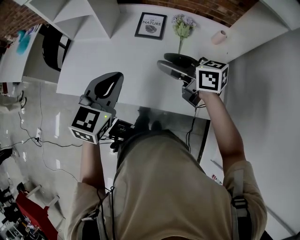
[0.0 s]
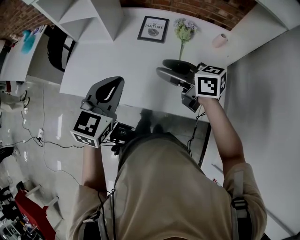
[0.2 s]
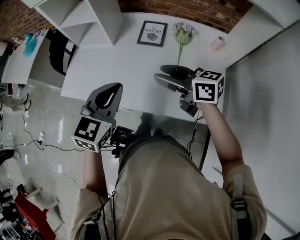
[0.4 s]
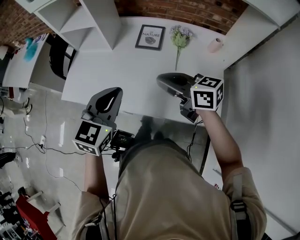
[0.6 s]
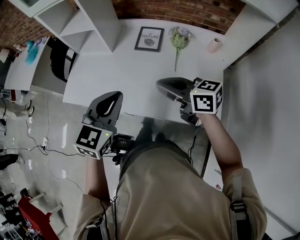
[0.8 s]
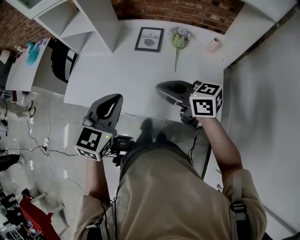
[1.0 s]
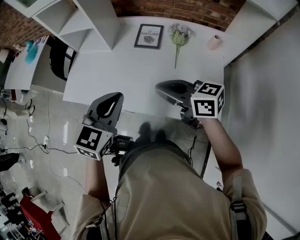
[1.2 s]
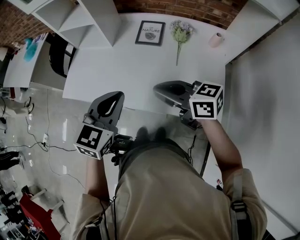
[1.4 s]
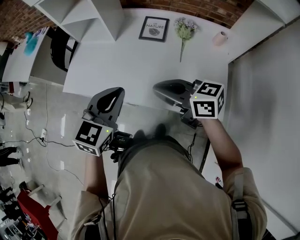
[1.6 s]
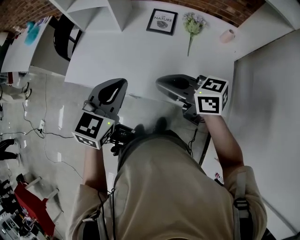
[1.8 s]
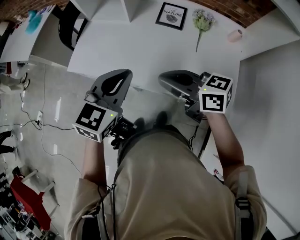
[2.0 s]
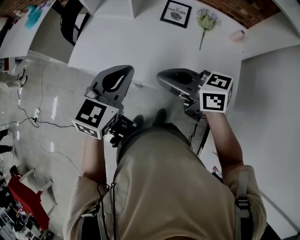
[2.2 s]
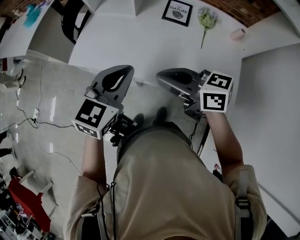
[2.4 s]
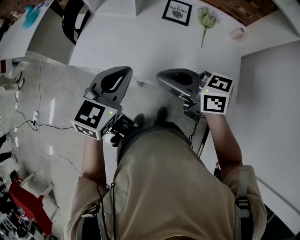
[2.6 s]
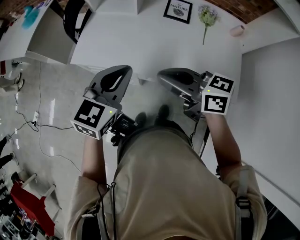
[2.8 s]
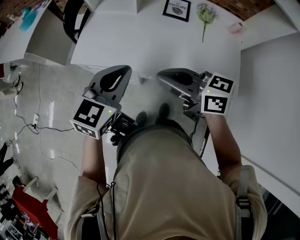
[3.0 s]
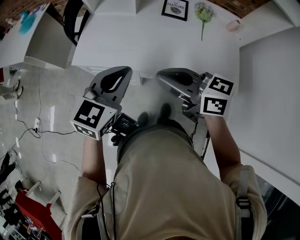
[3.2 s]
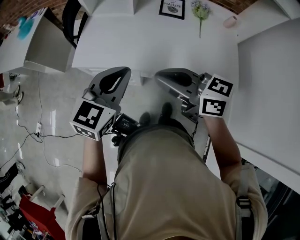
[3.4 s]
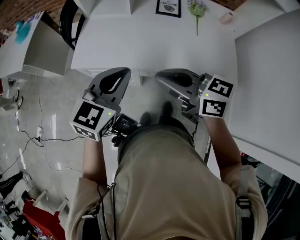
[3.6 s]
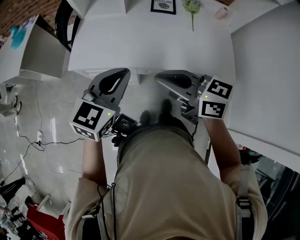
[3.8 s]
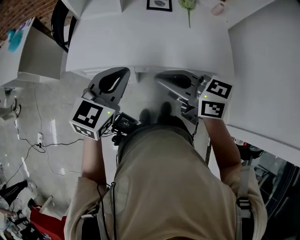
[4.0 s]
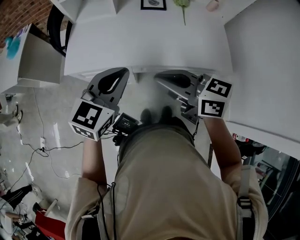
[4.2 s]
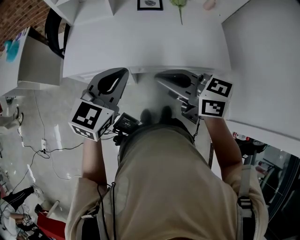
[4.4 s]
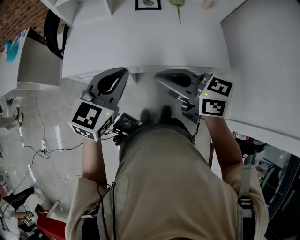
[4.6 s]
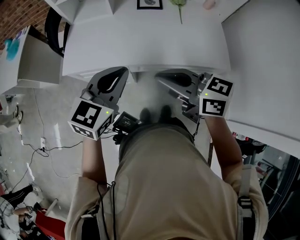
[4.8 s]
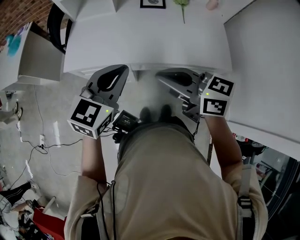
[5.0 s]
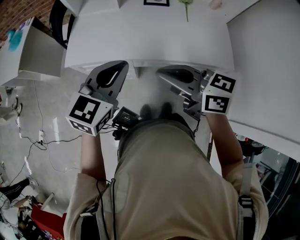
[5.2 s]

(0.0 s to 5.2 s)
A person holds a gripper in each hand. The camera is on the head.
0.0 s - 1.8 s: The left gripper ends up roughly 5 cm from where it was. The right gripper moves backward and to the left, roughly 15 cm, and closes.
1.8 s - 3.4 s: Both grippers travel together to the left, about 15 cm.
3.4 s - 5.2 s: The right gripper ends up approximately 5 cm from where it was.

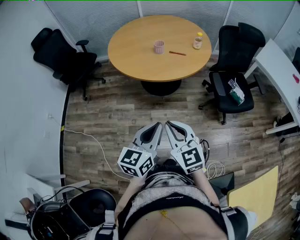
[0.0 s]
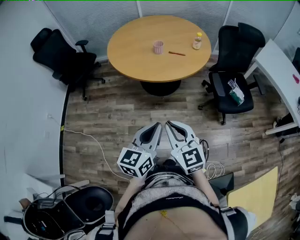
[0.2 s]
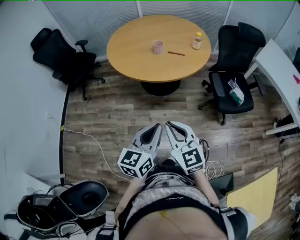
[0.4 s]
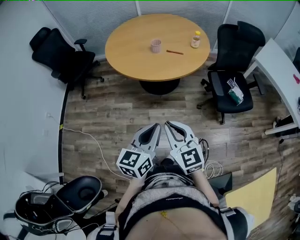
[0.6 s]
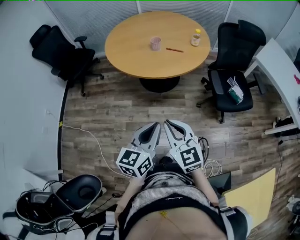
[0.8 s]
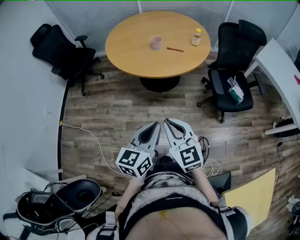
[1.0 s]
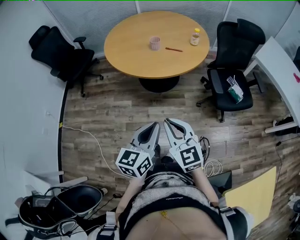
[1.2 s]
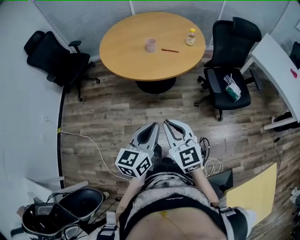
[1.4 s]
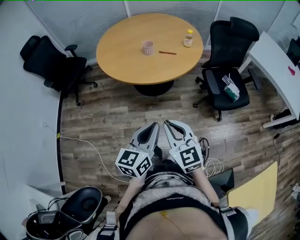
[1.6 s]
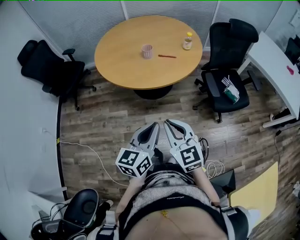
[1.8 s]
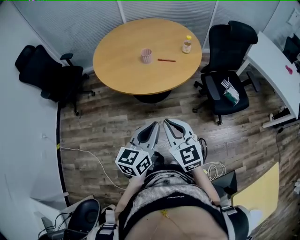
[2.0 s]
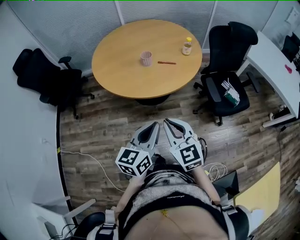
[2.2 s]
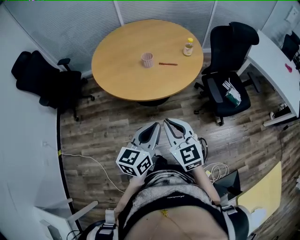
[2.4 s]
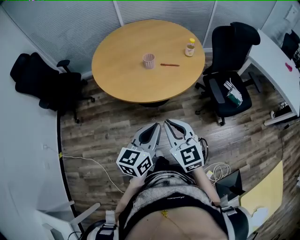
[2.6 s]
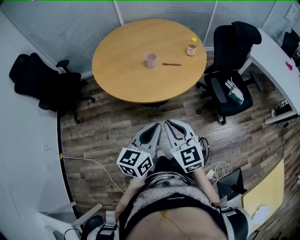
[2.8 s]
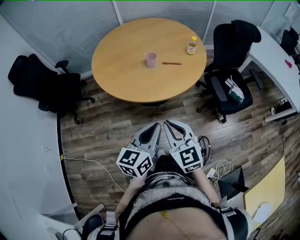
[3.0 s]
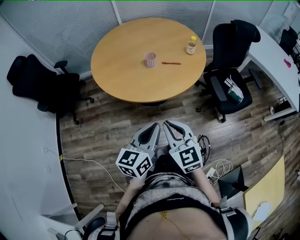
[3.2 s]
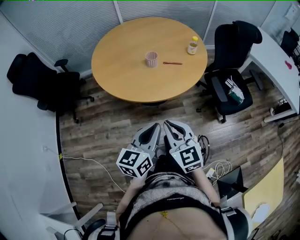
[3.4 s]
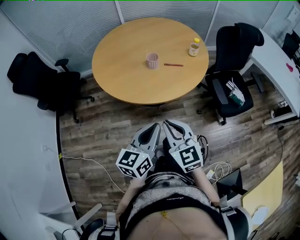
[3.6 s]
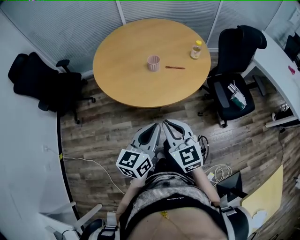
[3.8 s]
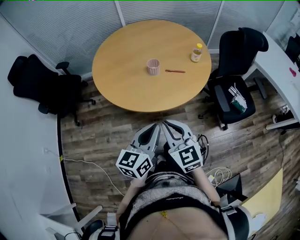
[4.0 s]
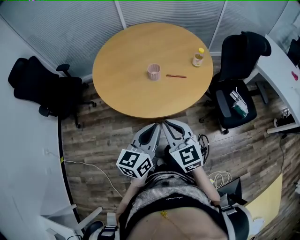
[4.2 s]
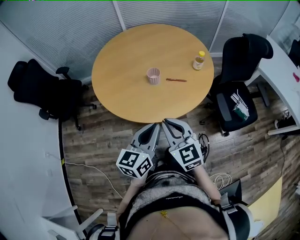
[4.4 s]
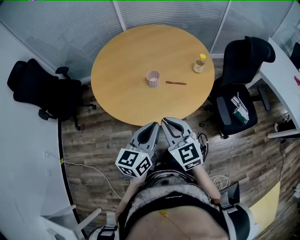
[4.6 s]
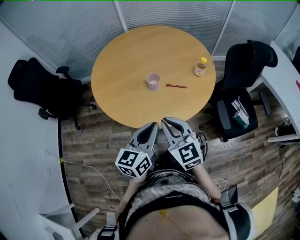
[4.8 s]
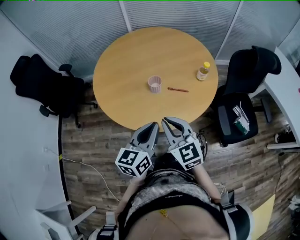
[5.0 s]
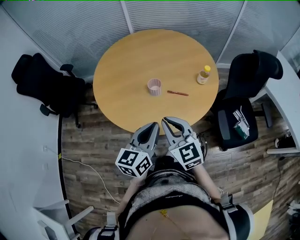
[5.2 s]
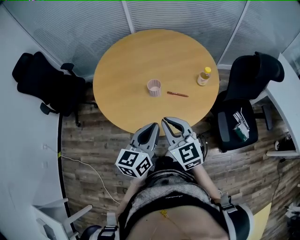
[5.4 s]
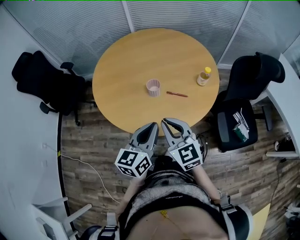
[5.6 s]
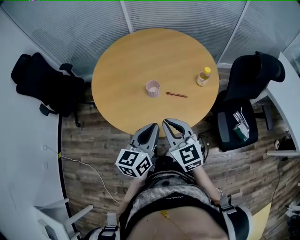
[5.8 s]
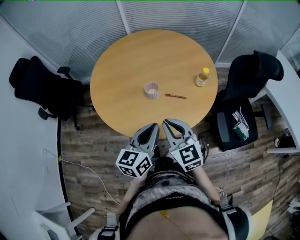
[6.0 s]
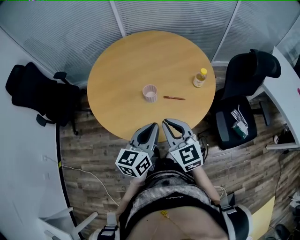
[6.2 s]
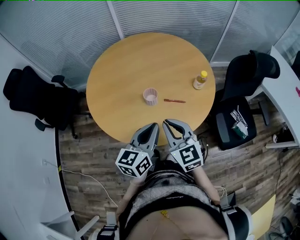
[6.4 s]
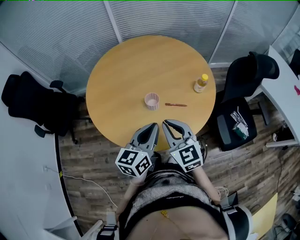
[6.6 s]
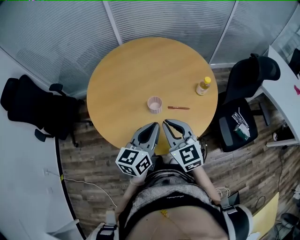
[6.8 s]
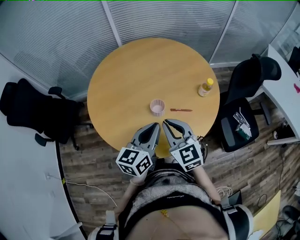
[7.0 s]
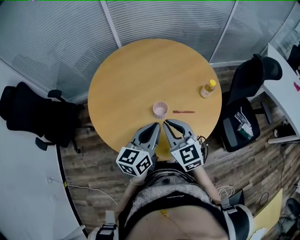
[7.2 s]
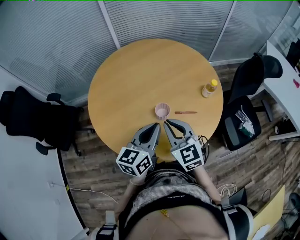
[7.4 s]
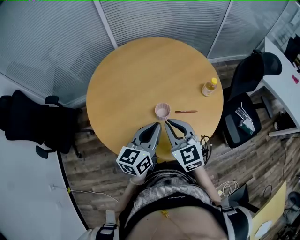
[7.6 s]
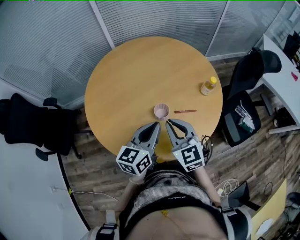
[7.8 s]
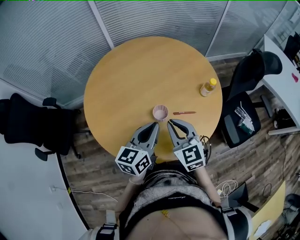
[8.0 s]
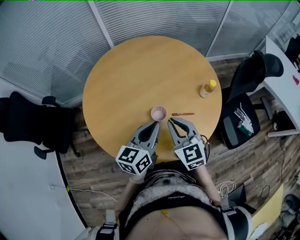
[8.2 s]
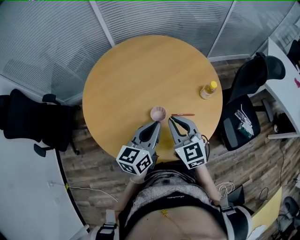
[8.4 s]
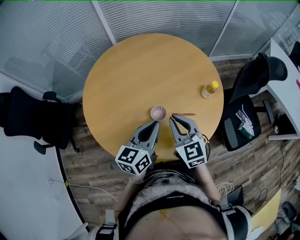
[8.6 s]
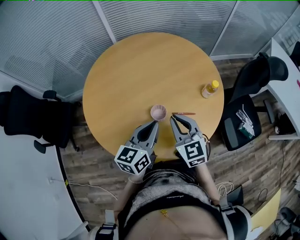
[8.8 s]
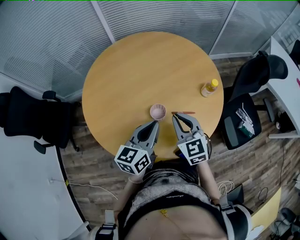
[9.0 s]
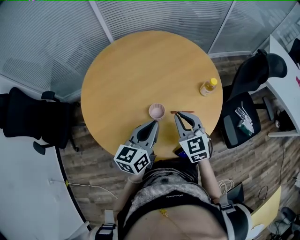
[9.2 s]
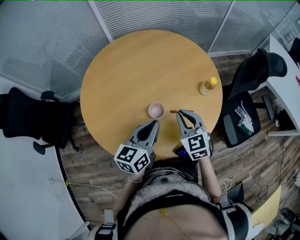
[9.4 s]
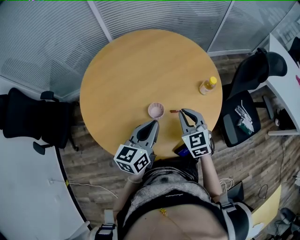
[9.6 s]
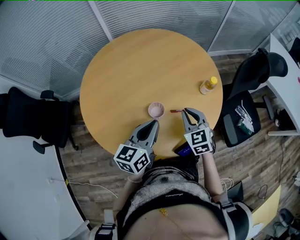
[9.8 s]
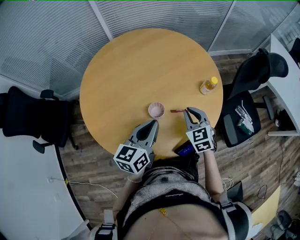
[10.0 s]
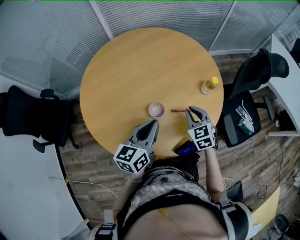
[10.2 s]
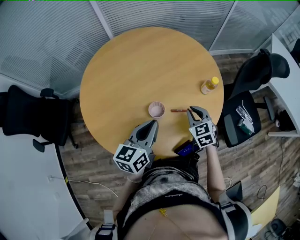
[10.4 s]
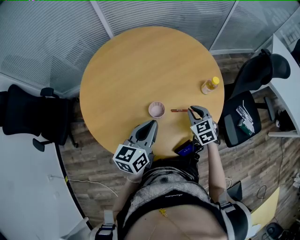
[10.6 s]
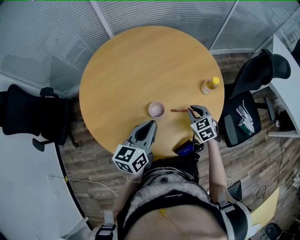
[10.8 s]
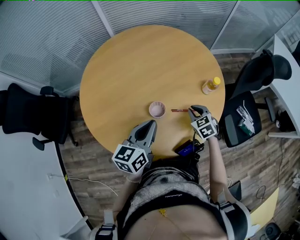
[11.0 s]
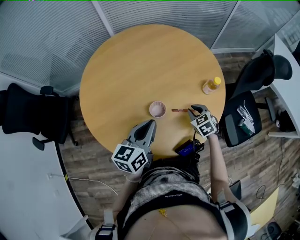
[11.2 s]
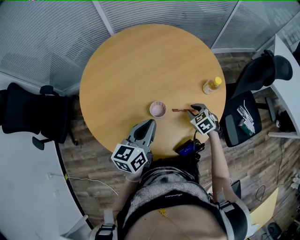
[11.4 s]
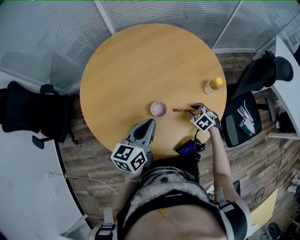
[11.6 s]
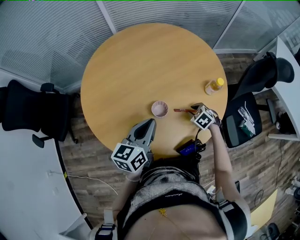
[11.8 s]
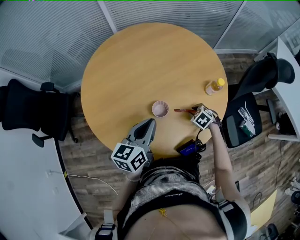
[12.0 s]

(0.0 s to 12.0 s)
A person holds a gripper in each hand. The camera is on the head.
0.0 s - 1.6 s: The right gripper moves roughly 5 cm.
1.6 s - 3.0 s: Both grippers travel together forward and to the left, approximately 15 cm.
3.0 s - 4.4 s: The grippers both shift forward by roughly 15 cm.
4.4 s - 6.0 s: The left gripper shifts some 10 cm forward. The right gripper shifts approximately 10 cm forward and to the right.
6.0 s - 7.6 s: The two grippers go roughly 15 cm forward and to the left.
7.6 s - 9.0 s: The right gripper travels to the right and forward by roughly 10 cm.
9.0 s - 10.4 s: The right gripper heads downward and to the right, covering roughly 15 cm.
10.4 s - 12.0 s: The right gripper heads downward, covering some 15 cm, and angles its fingers downward, by approximately 30 degrees.

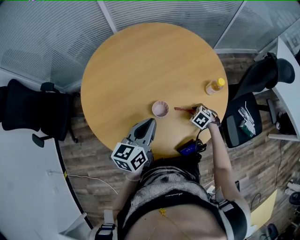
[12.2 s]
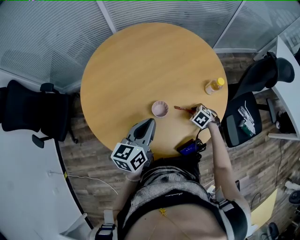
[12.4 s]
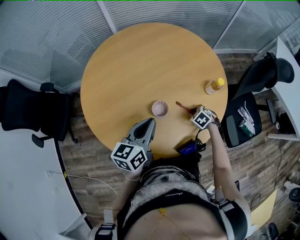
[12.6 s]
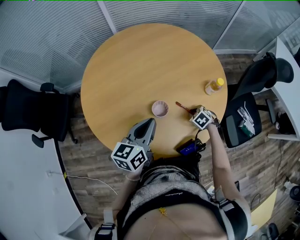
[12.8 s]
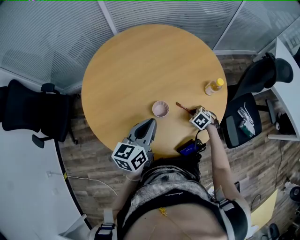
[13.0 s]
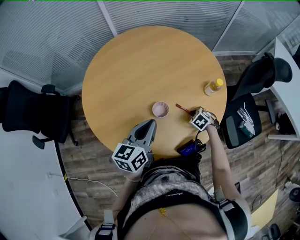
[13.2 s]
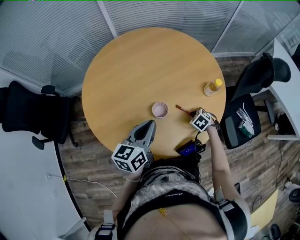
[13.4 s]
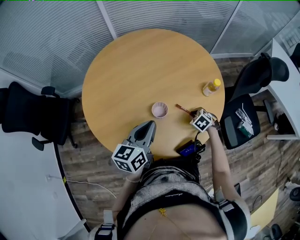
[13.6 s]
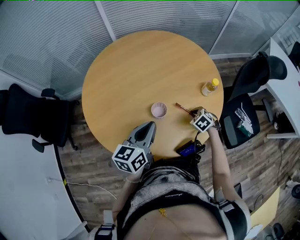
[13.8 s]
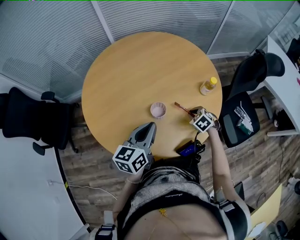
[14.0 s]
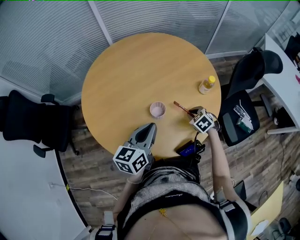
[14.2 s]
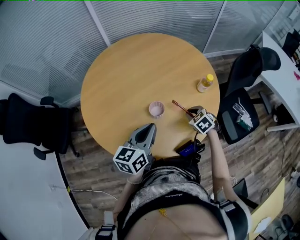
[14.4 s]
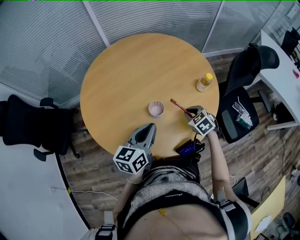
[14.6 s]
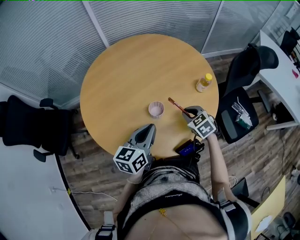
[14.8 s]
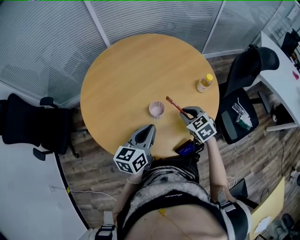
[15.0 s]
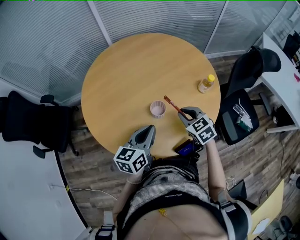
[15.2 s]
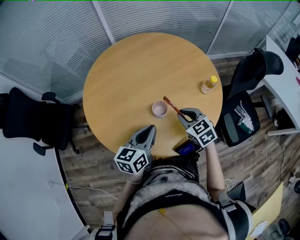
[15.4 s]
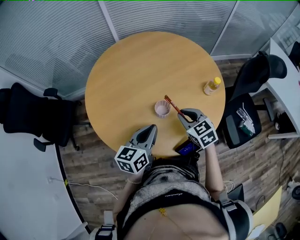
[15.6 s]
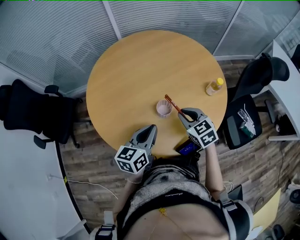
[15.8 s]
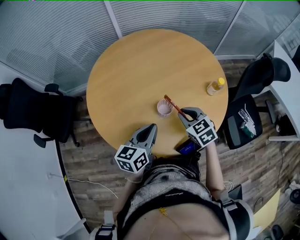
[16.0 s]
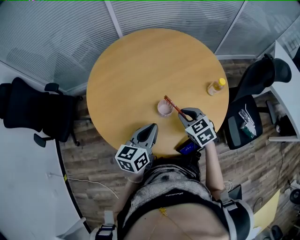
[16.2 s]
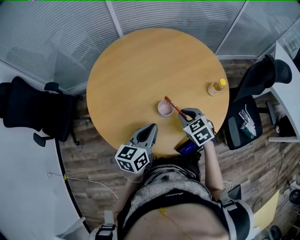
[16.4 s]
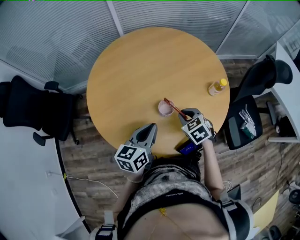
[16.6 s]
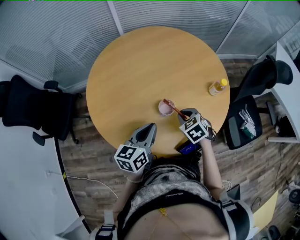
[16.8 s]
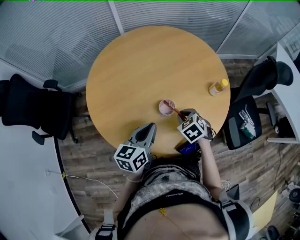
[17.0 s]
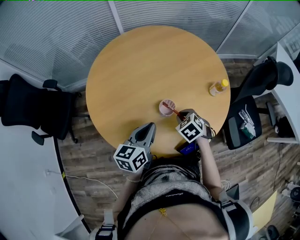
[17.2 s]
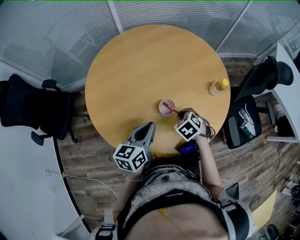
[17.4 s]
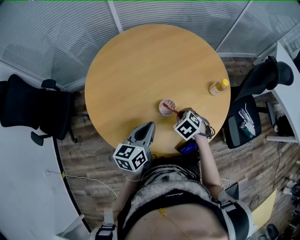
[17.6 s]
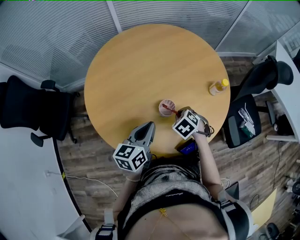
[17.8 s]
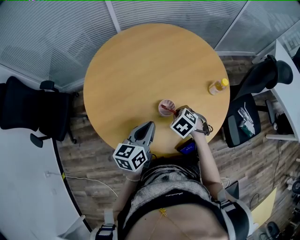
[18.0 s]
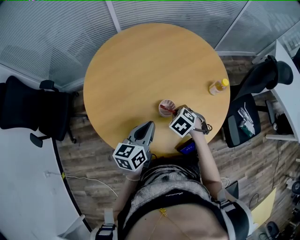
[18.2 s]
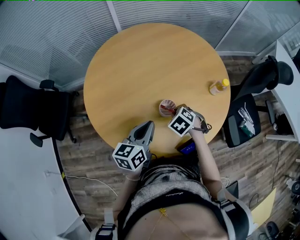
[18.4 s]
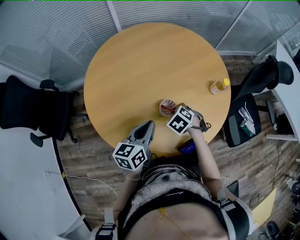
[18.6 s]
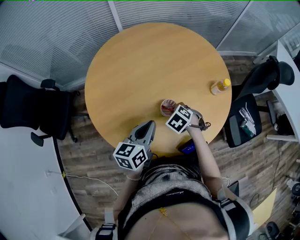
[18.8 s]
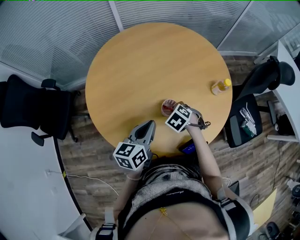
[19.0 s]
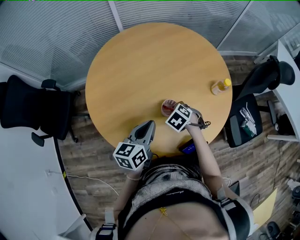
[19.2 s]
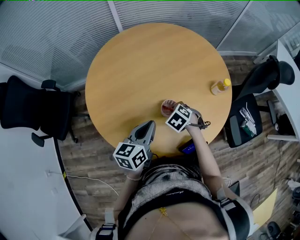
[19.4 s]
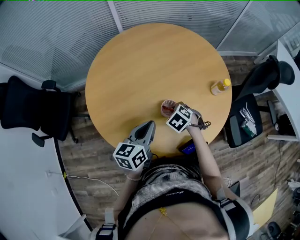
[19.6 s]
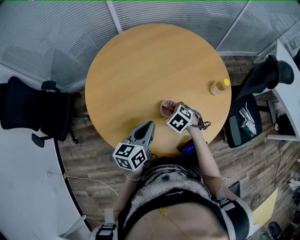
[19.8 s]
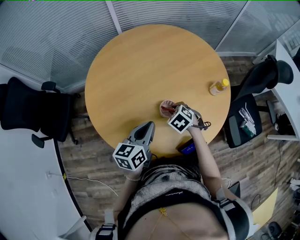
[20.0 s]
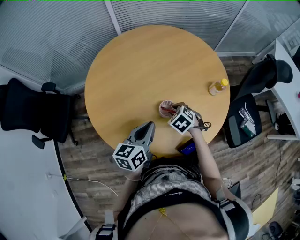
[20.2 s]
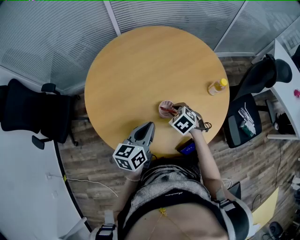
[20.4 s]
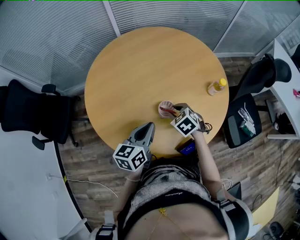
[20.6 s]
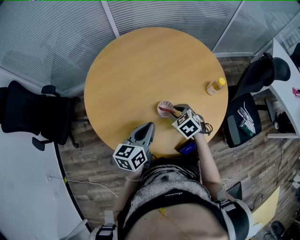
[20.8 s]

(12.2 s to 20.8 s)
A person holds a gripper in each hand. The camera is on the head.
12.2 s - 13.6 s: The grippers move only a little.
13.6 s - 15.0 s: The right gripper heads upward and to the left, covering approximately 15 cm, and rotates approximately 30 degrees.
15.0 s - 16.6 s: The right gripper shifts some 5 cm to the left.
16.6 s - 18.0 s: The right gripper turns by some 20 degrees.
18.0 s - 20.8 s: The grippers make only small movements.
